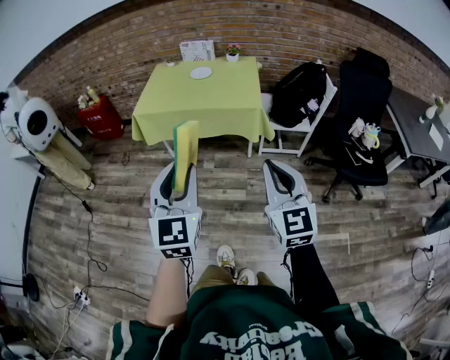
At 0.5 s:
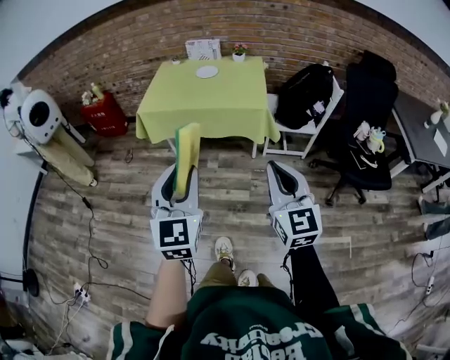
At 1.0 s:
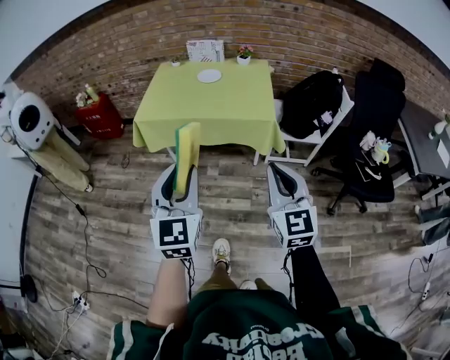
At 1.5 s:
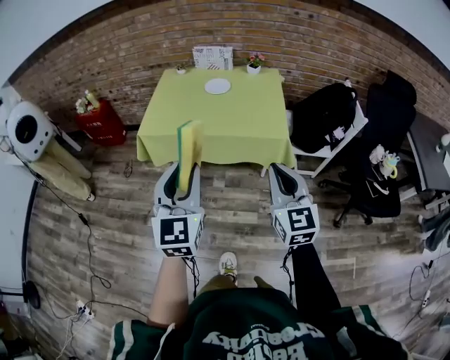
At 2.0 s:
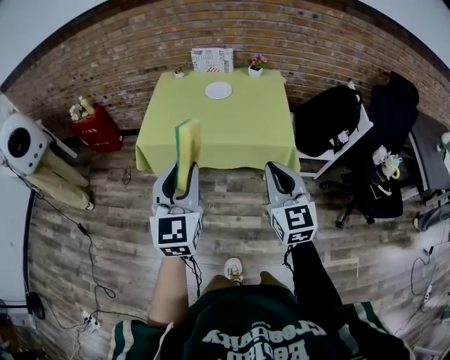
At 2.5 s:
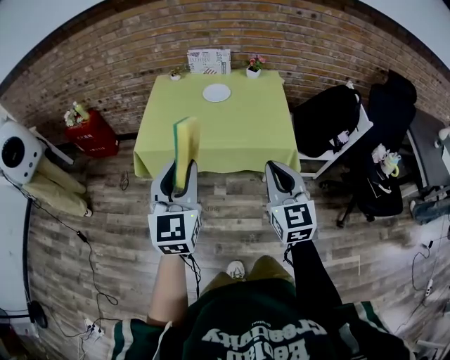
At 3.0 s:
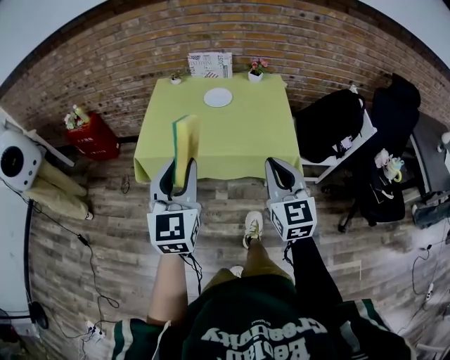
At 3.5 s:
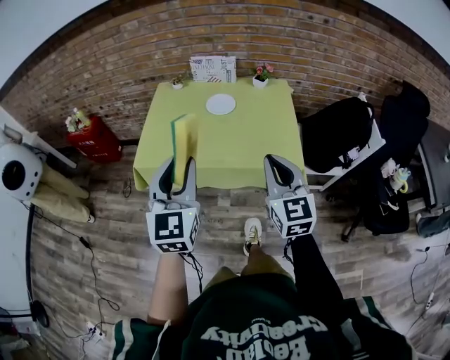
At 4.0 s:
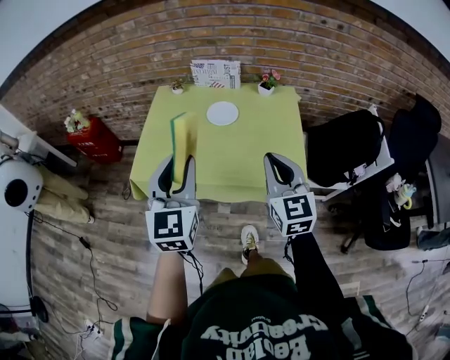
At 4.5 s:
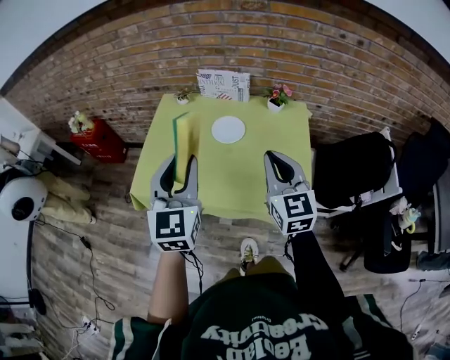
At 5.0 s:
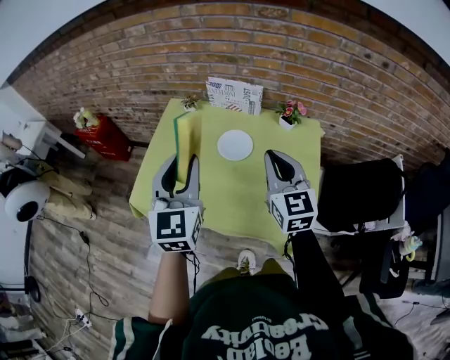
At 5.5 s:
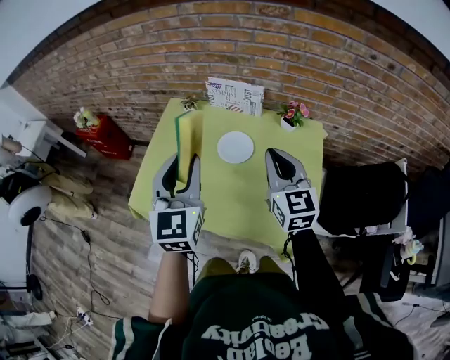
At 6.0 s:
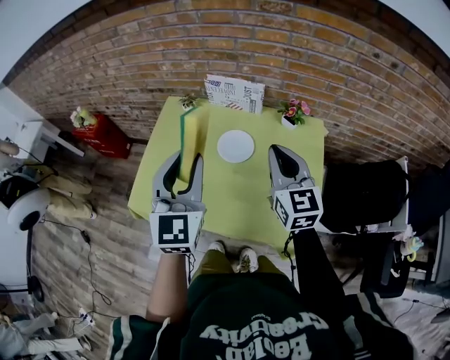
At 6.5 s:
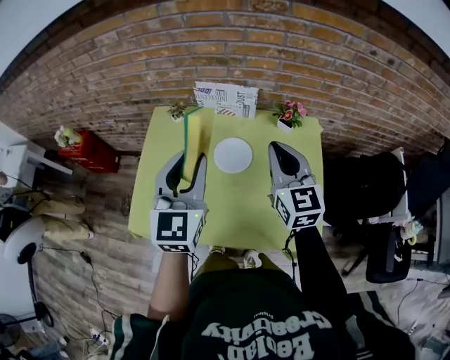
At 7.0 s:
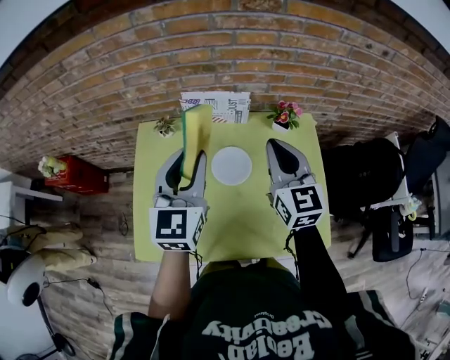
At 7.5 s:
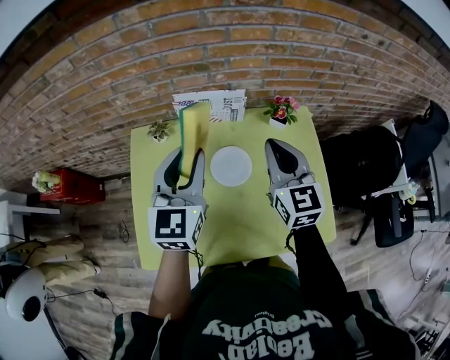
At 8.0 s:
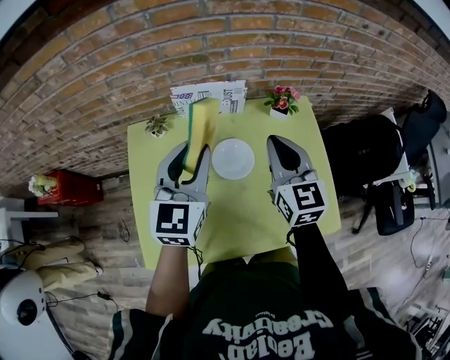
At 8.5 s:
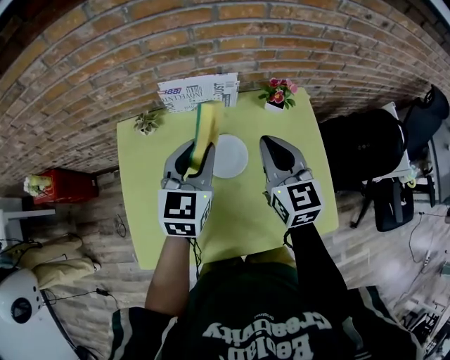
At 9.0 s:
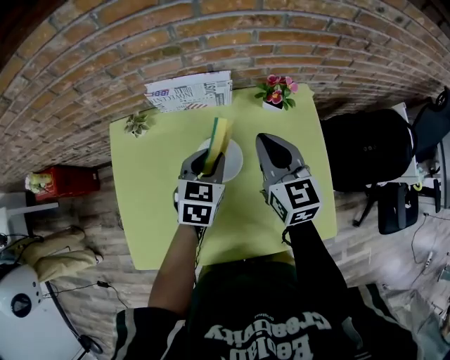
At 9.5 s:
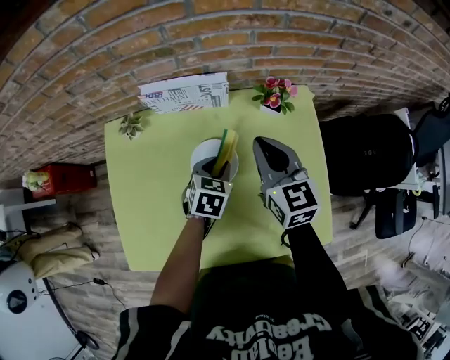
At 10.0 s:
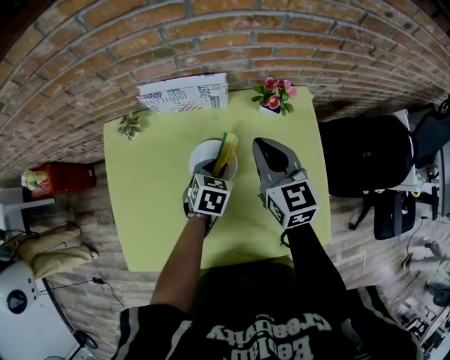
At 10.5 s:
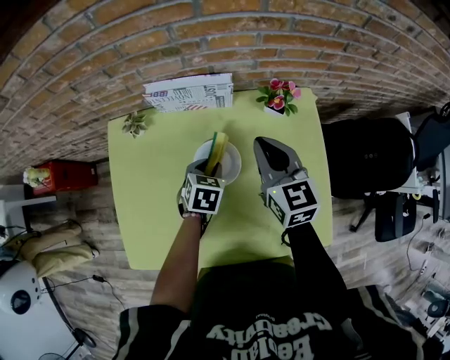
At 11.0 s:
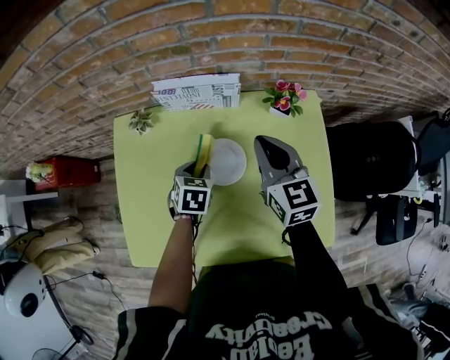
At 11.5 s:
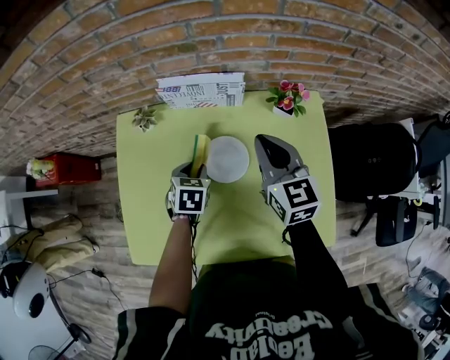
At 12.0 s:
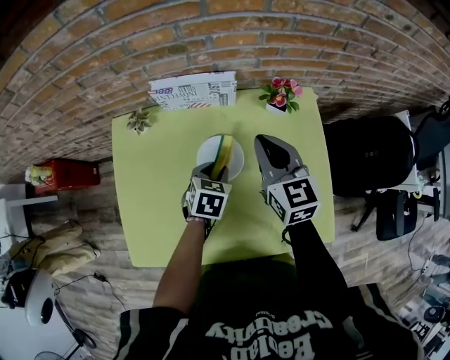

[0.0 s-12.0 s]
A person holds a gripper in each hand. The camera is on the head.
0.0 to 2.0 s: Both grippers travel together forward, roughly 30 cm.
2.0 to 4.0 s: Both grippers travel together forward, about 25 cm.
4.0 to 6.0 s: Both grippers move forward, approximately 25 cm.
6.0 to 8.0 s: The left gripper shifts about 20 cm forward, and changes its angle by some 30 degrees. Meanwhile the right gripper heads forward and to the left, covering some 10 cm, and changes its angle by approximately 20 degrees.
8.0 to 10.0 s: The left gripper travels downward and to the right by about 30 cm, and points its fingers about 40 degrees further downward. Meanwhile the right gripper moves downward and forward, roughly 10 cm.
10.0 to 12.0 s: The left gripper travels to the left and back again, approximately 10 cm each way.

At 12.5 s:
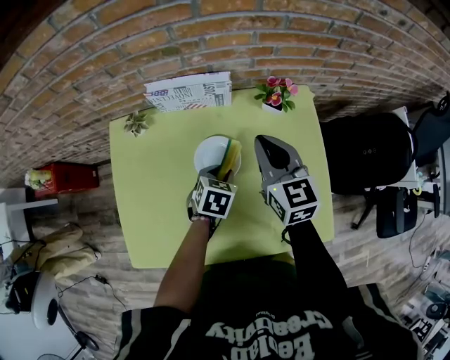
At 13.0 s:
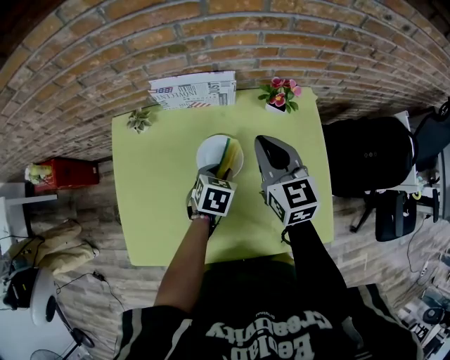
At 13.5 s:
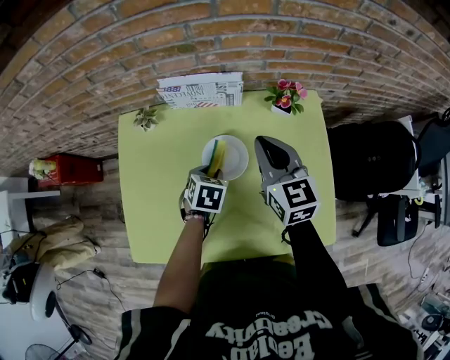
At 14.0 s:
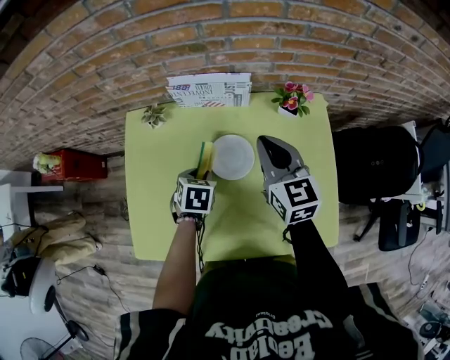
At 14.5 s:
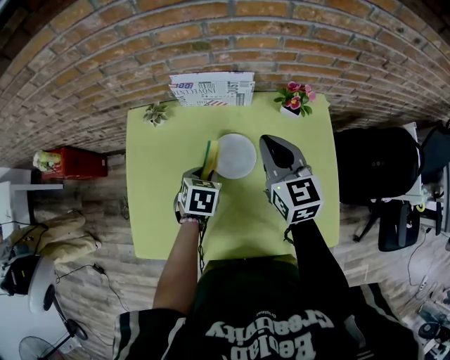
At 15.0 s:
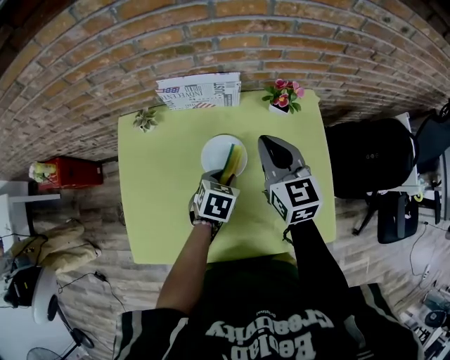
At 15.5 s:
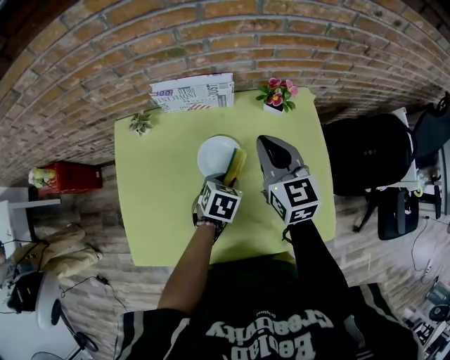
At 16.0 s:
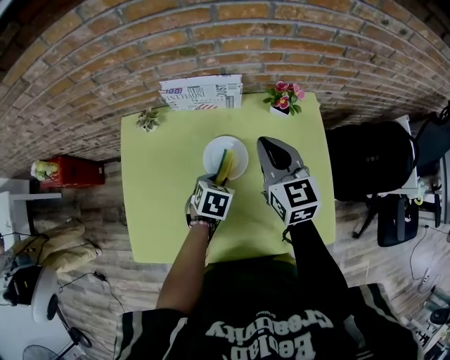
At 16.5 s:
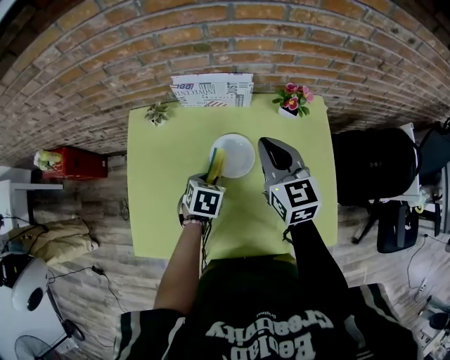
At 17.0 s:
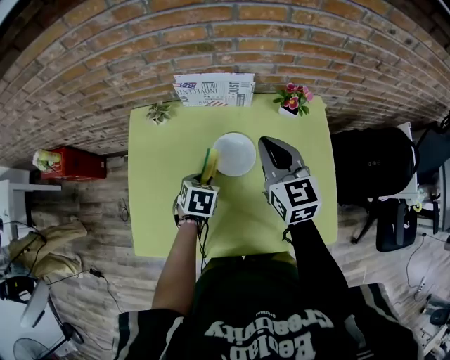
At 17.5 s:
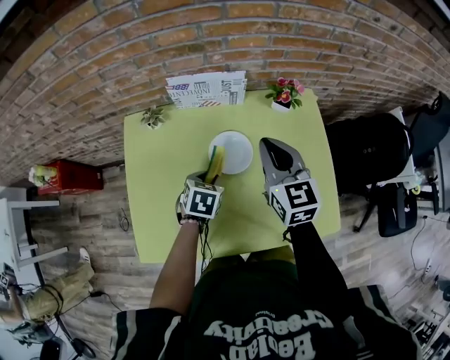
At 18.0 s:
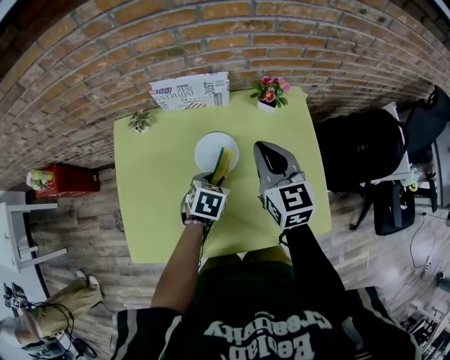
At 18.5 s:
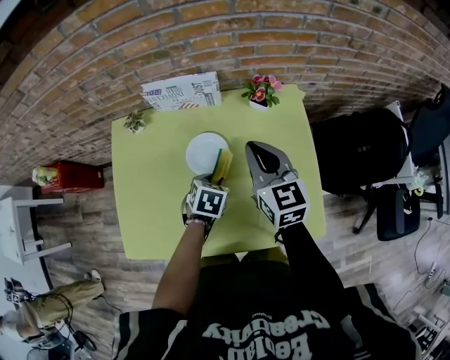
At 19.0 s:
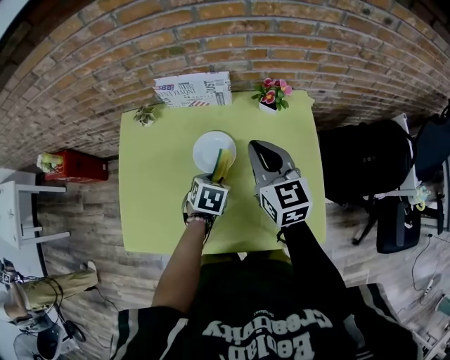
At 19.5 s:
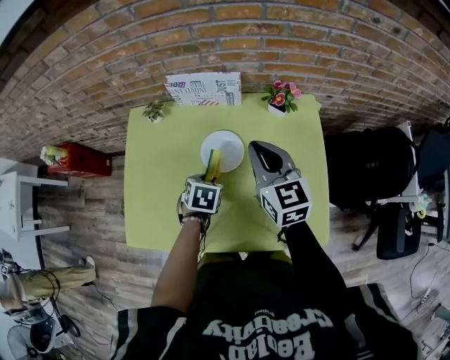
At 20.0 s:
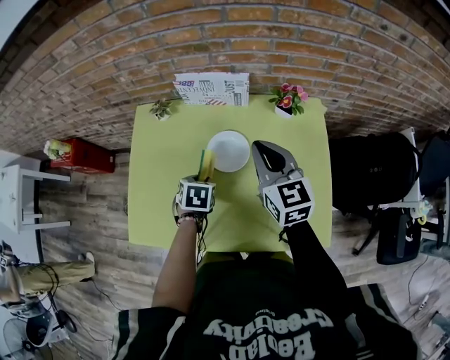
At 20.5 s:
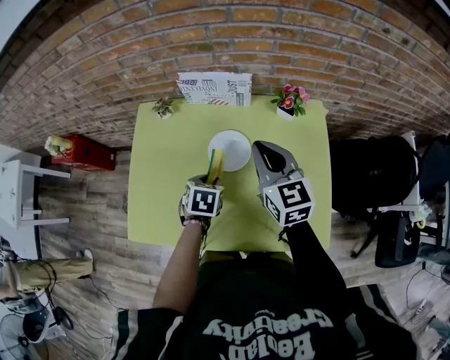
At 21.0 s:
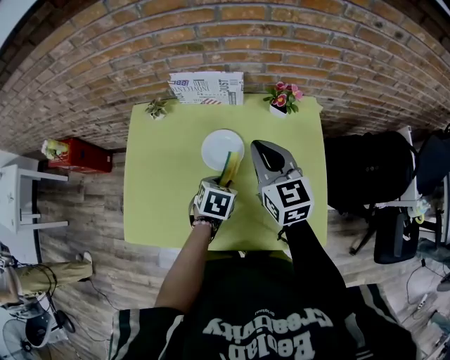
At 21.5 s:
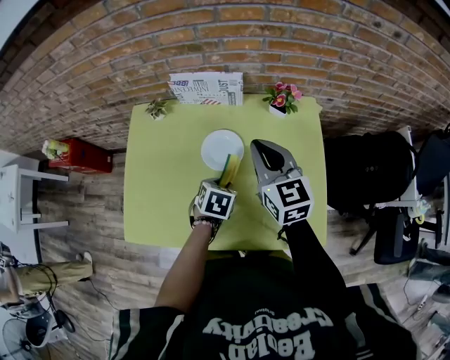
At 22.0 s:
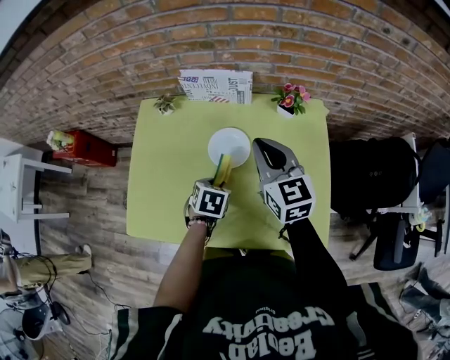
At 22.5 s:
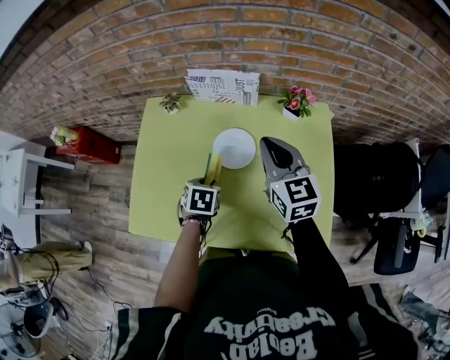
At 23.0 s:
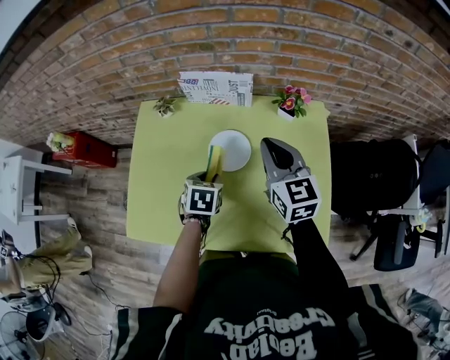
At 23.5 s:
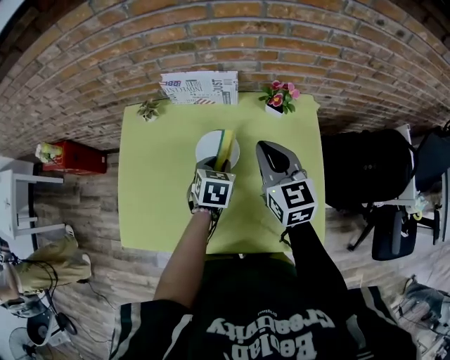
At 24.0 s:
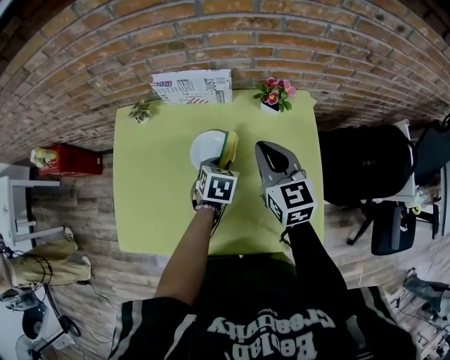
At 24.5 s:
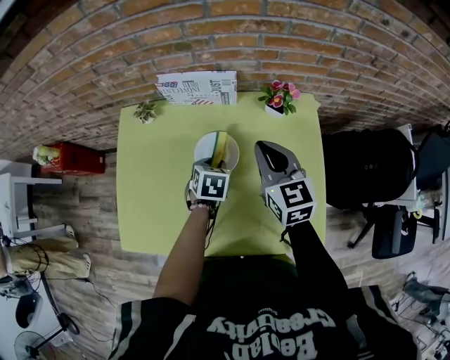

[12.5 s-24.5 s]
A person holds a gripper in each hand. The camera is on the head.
12.5 to 14.5 s: The left gripper heads to the left, covering some 10 cm.
14.5 to 16.5 s: The left gripper moves some 10 cm to the right and comes back.
16.5 to 18.5 s: The right gripper moves to the right, approximately 5 cm, while the left gripper is displaced to the right by about 10 cm.
18.5 to 20.5 s: The left gripper goes approximately 10 cm to the left, while the right gripper is displaced to the left by about 5 cm.
20.5 to 22.5 s: The left gripper goes to the right and returns, roughly 5 cm each way.
22.5 to 24.5 s: The right gripper shifts by some 5 cm; the left gripper goes some 15 cm forward and to the right.

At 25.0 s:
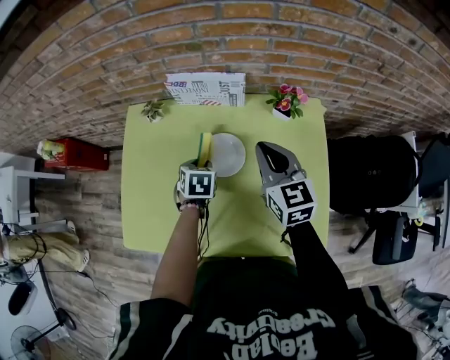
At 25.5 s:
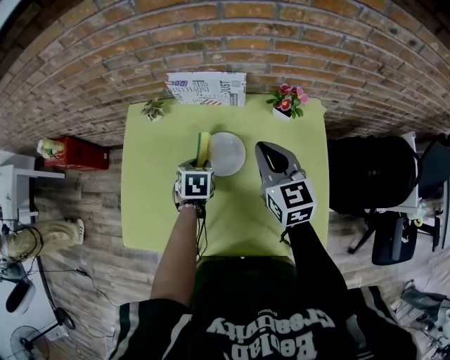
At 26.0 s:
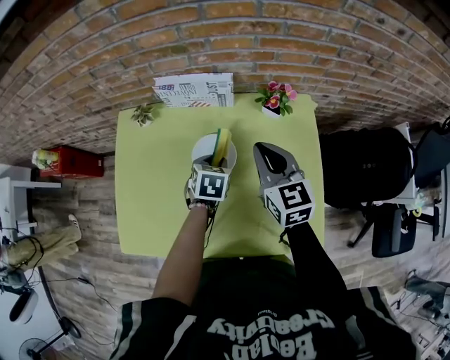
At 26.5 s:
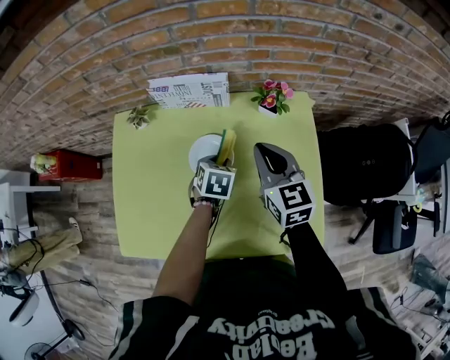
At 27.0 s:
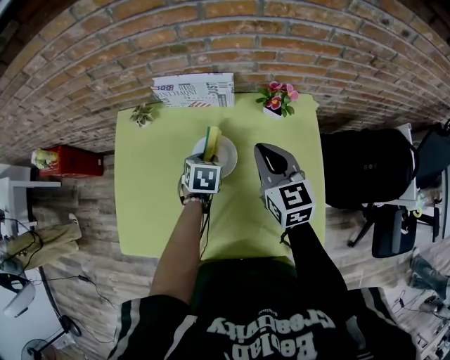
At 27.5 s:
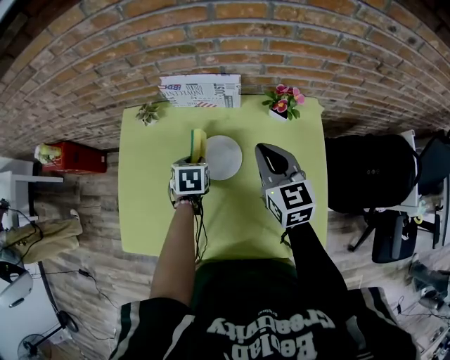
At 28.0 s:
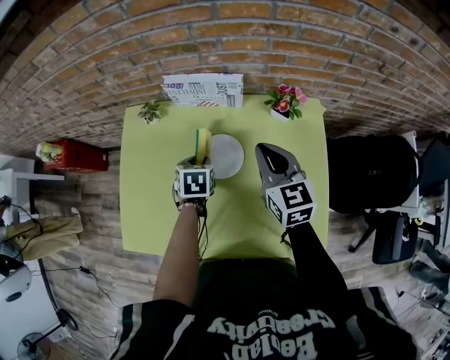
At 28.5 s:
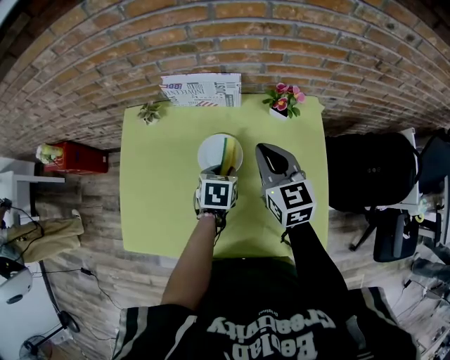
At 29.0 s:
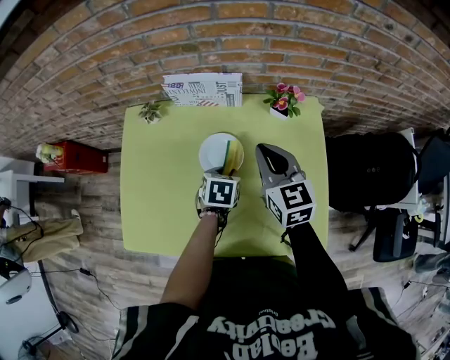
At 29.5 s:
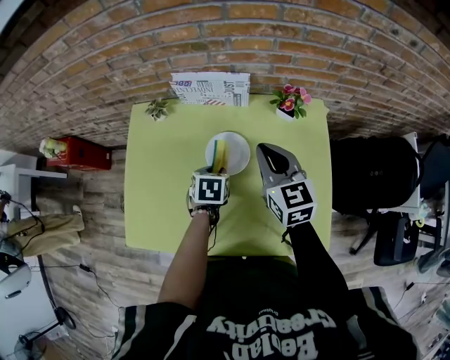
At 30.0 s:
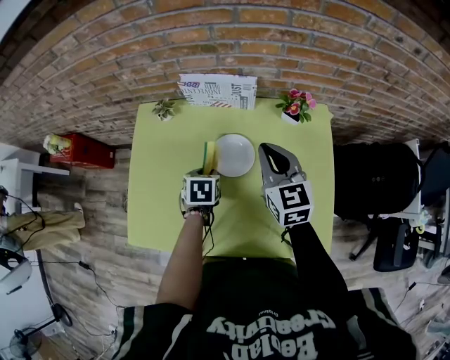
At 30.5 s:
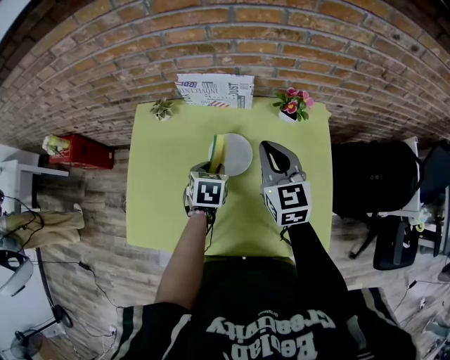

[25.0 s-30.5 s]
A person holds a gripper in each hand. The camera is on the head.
25.0 to 27.0 s: The left gripper travels to the right by some 5 cm.
27.0 to 28.5 s: The left gripper moves some 5 cm to the left and comes back.
28.5 to 30.5 s: The left gripper goes roughly 5 cm to the left.
